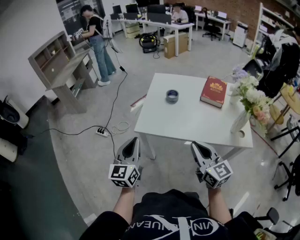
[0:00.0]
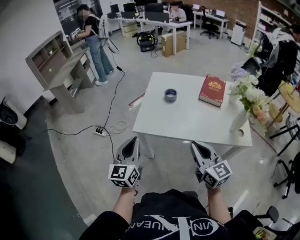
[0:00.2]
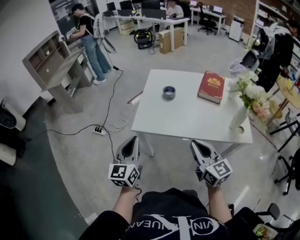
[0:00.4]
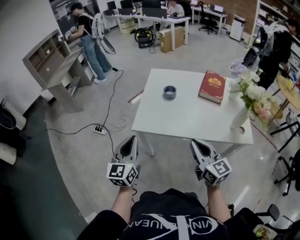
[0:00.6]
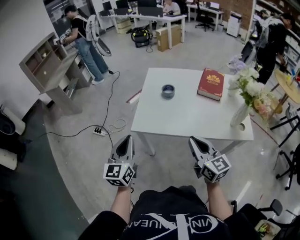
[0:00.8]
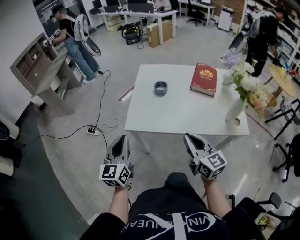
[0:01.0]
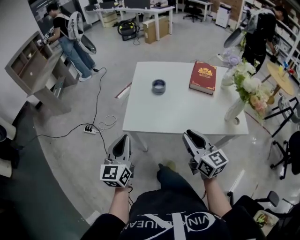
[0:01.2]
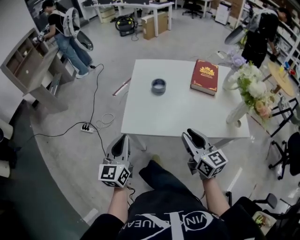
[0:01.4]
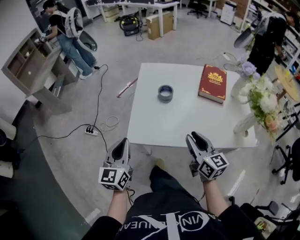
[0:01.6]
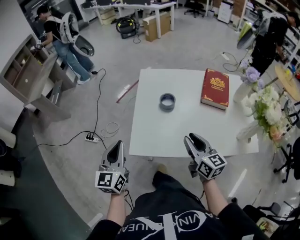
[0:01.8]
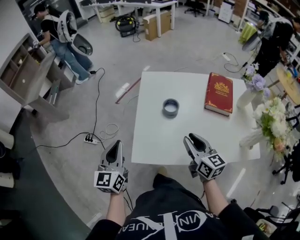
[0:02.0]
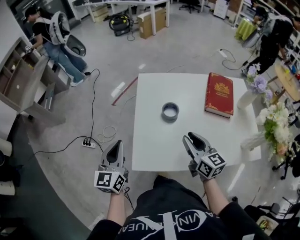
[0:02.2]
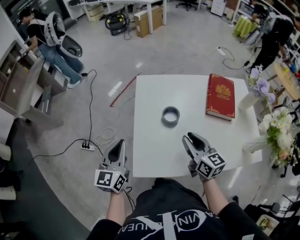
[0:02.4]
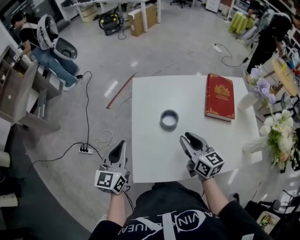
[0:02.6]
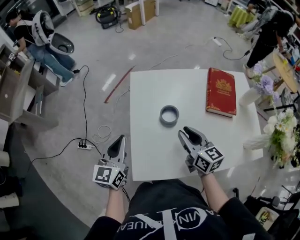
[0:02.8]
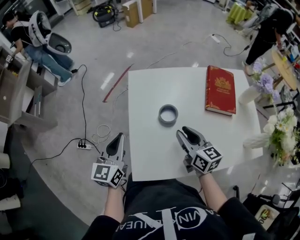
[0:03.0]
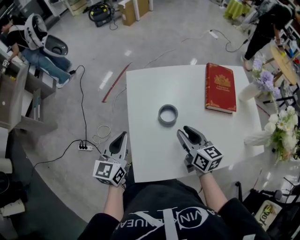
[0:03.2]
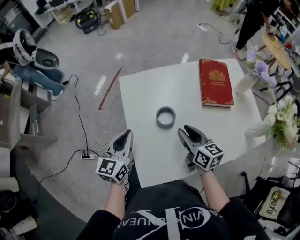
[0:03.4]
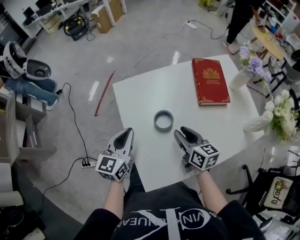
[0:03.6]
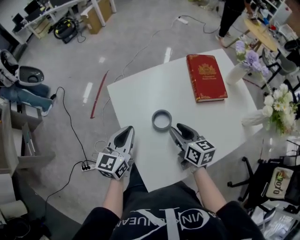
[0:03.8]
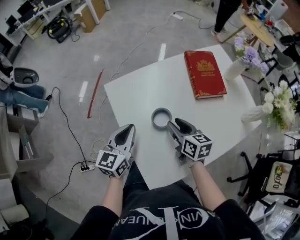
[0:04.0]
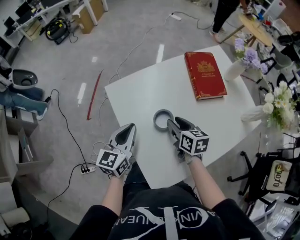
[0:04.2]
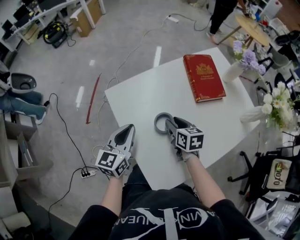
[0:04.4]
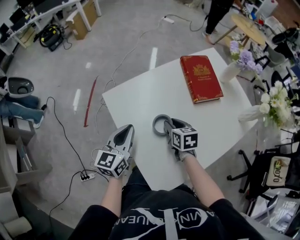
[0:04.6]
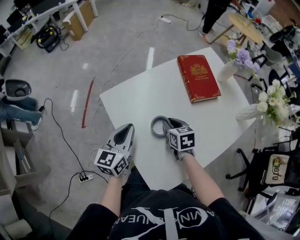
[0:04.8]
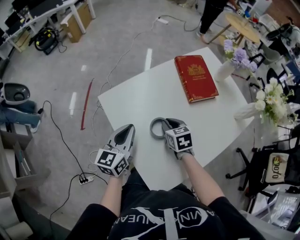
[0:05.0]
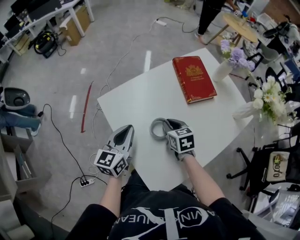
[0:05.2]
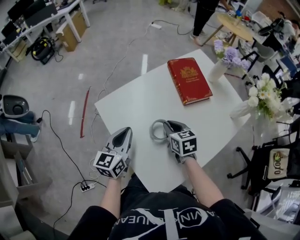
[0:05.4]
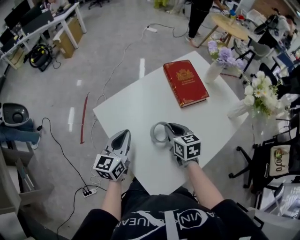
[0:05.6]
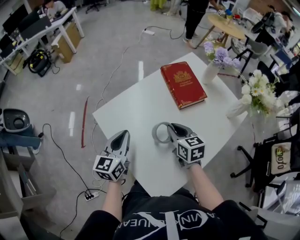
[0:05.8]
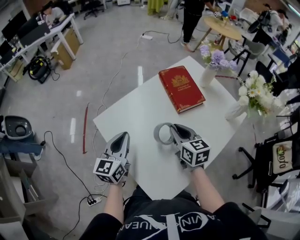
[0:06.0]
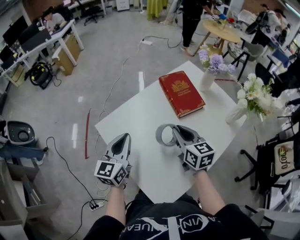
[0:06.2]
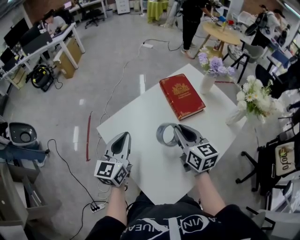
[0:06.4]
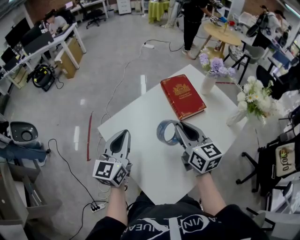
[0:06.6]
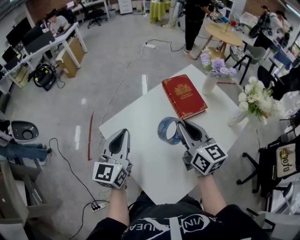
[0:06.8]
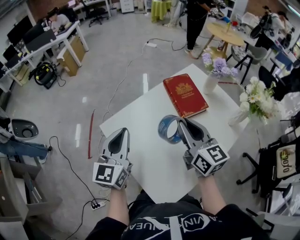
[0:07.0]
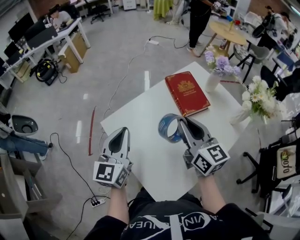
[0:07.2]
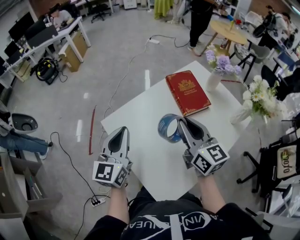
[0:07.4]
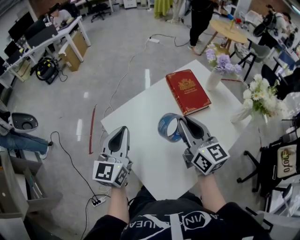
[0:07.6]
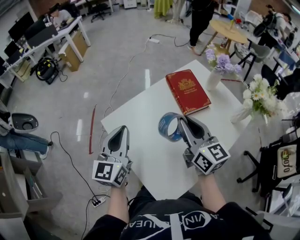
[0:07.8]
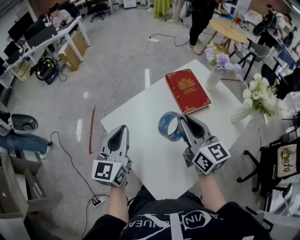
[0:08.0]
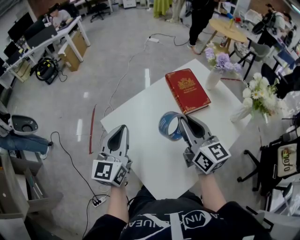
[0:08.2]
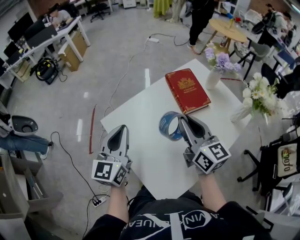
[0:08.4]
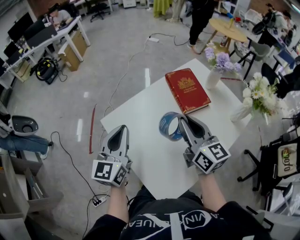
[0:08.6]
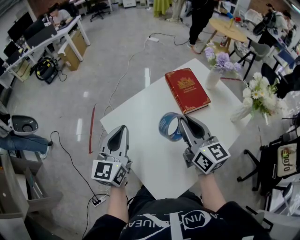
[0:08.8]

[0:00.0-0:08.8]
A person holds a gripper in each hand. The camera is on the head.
0:00.0 to 0:01.4: Both grippers travel together forward, roughly 10 cm. The right gripper opens its fingers.
0:01.4 to 0:03.0: The grippers both shift forward by roughly 30 cm.
0:03.0 to 0:04.4: The right gripper changes place by about 10 cm, and changes its angle by approximately 30 degrees. Meanwhile the left gripper shifts by about 15 cm, and changes its angle by about 30 degrees.
0:04.4 to 0:05.8: The right gripper heads upward and to the right, covering roughly 10 cm, and closes up.
0:05.8 to 0:07.4: Both grippers move upward, roughly 15 cm. The right gripper changes its angle by some 30 degrees.
0:07.4 to 0:08.8: Neither gripper changes place.

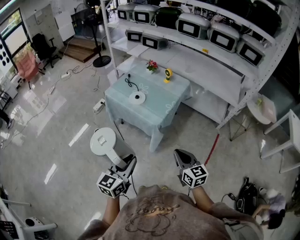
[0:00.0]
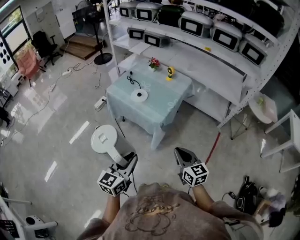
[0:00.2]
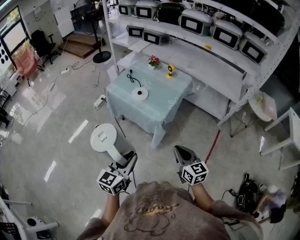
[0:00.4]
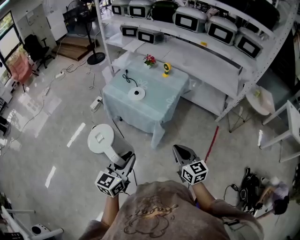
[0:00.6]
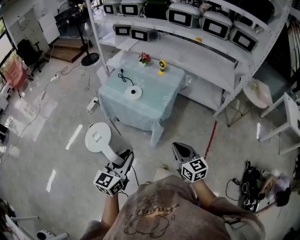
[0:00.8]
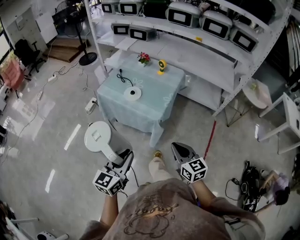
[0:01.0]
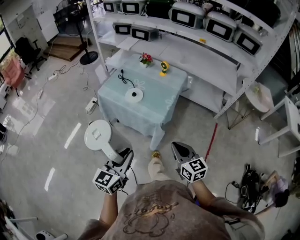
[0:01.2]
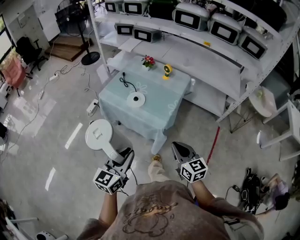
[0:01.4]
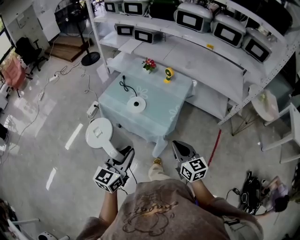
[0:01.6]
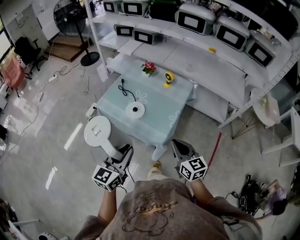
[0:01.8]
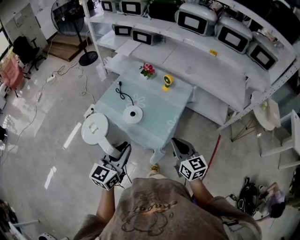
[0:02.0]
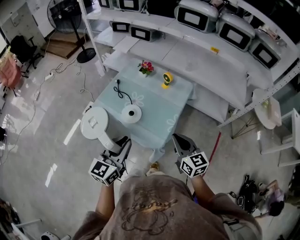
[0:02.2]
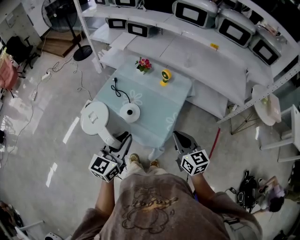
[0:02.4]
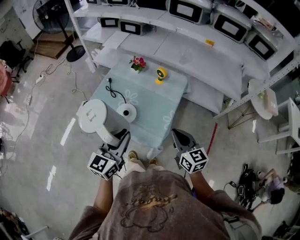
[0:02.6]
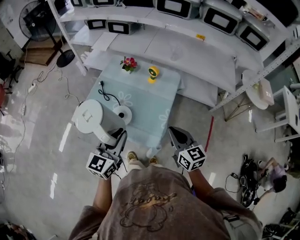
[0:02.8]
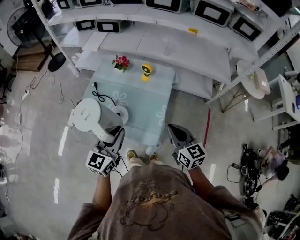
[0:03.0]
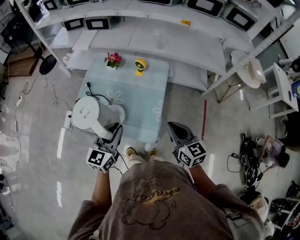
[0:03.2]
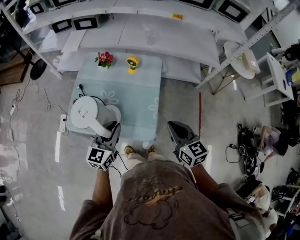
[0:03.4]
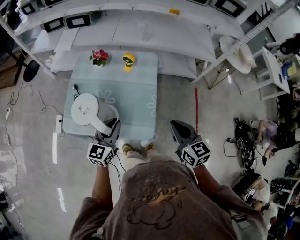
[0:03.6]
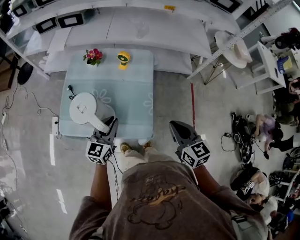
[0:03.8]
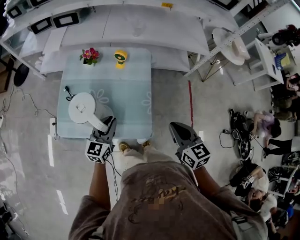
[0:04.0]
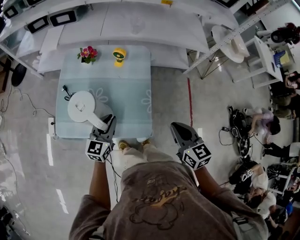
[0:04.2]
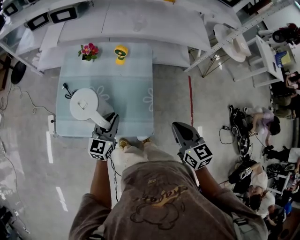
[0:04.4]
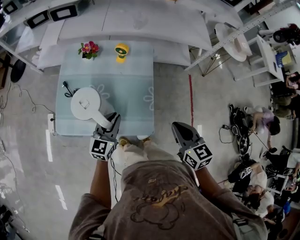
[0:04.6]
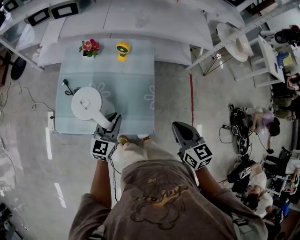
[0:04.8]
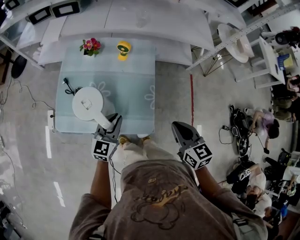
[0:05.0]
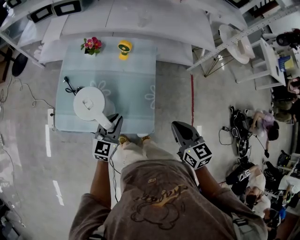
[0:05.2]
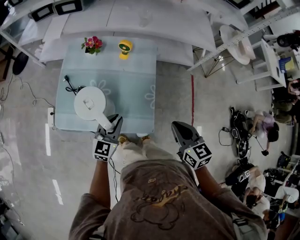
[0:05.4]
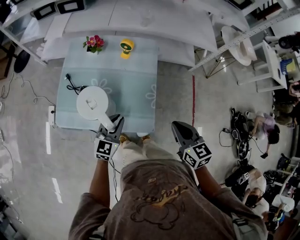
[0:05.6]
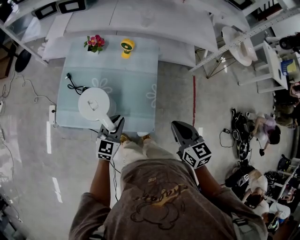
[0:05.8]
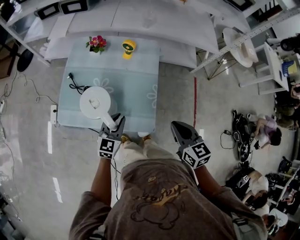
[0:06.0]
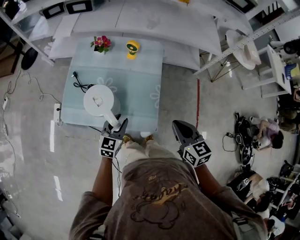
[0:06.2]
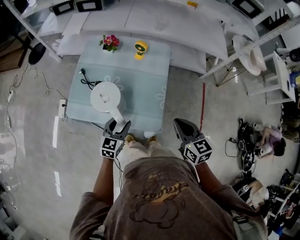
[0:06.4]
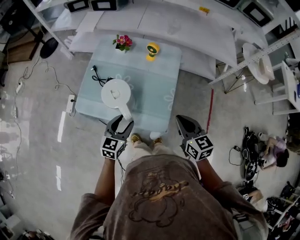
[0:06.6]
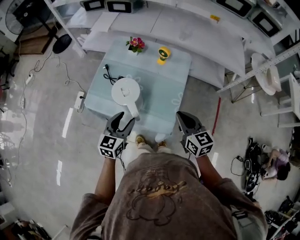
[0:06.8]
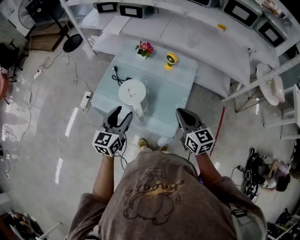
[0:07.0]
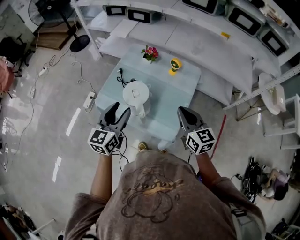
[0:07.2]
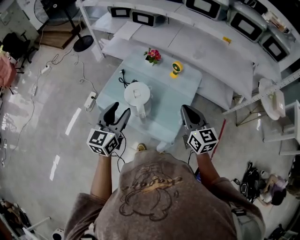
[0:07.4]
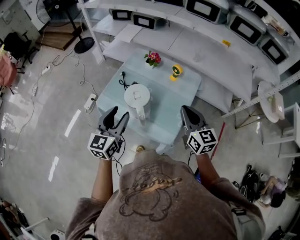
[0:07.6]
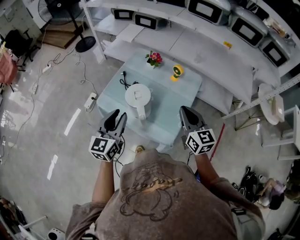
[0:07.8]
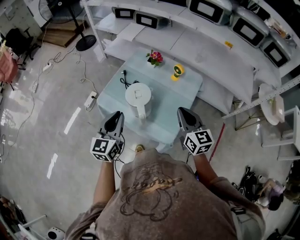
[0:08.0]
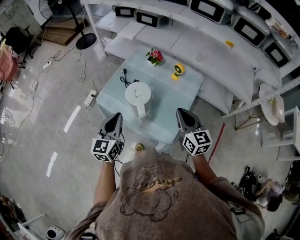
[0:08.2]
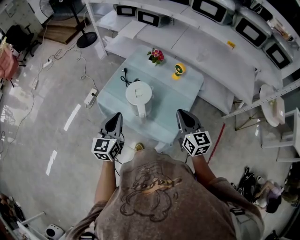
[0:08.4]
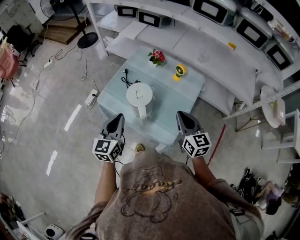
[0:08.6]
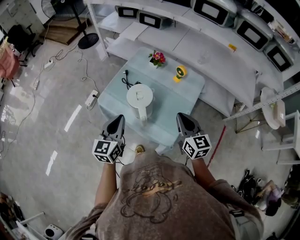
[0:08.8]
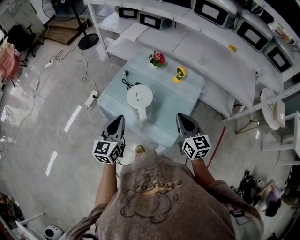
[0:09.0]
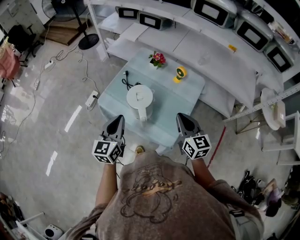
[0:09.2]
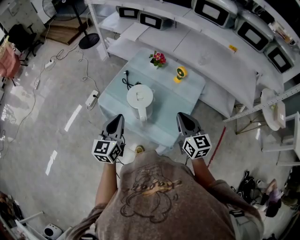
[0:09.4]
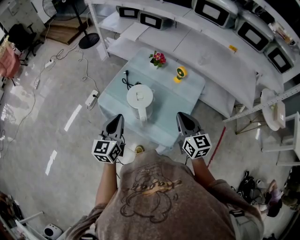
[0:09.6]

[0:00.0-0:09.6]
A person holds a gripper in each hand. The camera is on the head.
0:00.0 to 0:01.6: The grippers both shift forward and to the left by about 20 cm.
0:01.6 to 0:03.2: Both grippers move forward, about 25 cm.
0:03.2 to 0:04.8: The left gripper goes some 15 cm downward and forward.
0:04.8 to 0:06.4: The left gripper moves backward, approximately 5 cm, and opens.
0:06.4 to 0:08.0: The right gripper moves upward, to the left and forward, approximately 15 cm, and changes its angle by approximately 20 degrees. The left gripper shifts some 25 cm upward and to the left, rotates about 40 degrees, and closes.
0:08.0 to 0:09.6: The grippers move only a little.

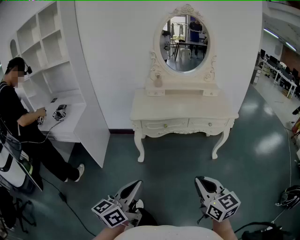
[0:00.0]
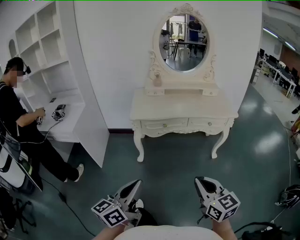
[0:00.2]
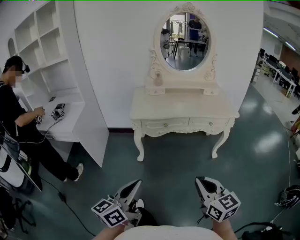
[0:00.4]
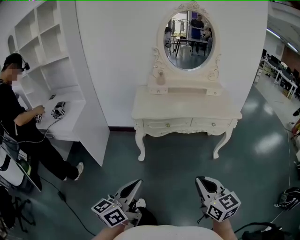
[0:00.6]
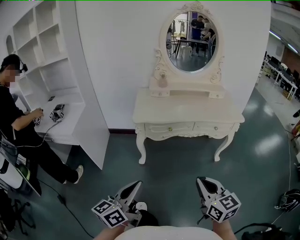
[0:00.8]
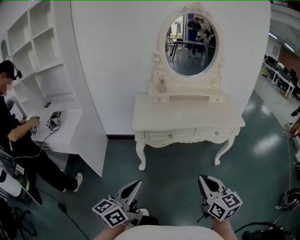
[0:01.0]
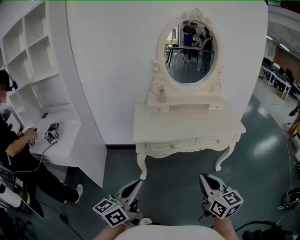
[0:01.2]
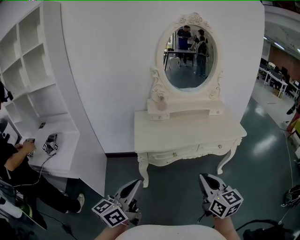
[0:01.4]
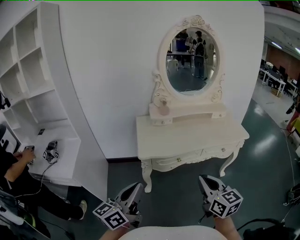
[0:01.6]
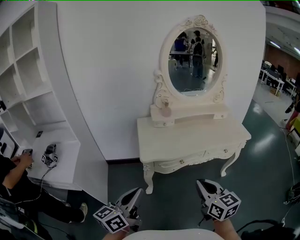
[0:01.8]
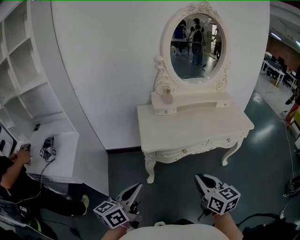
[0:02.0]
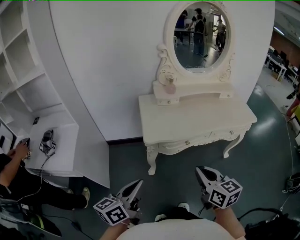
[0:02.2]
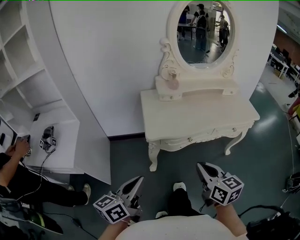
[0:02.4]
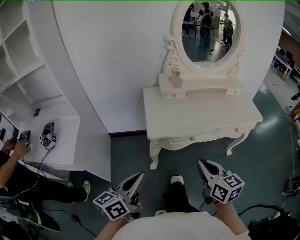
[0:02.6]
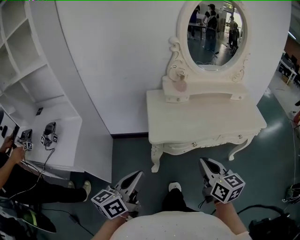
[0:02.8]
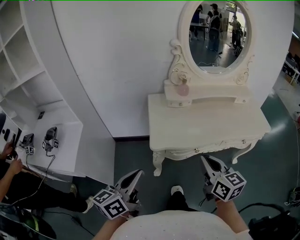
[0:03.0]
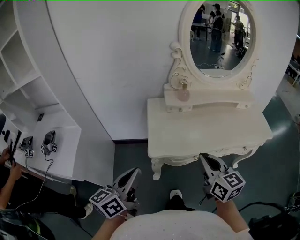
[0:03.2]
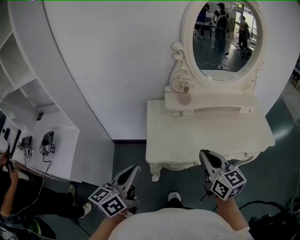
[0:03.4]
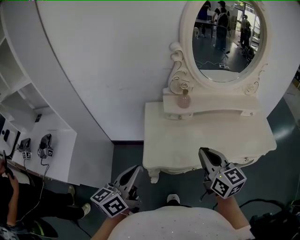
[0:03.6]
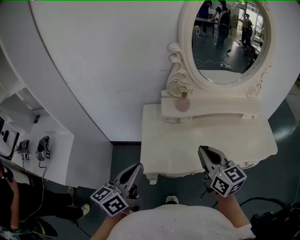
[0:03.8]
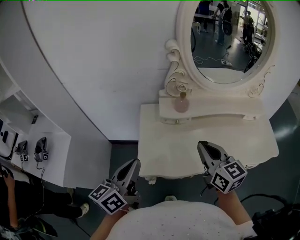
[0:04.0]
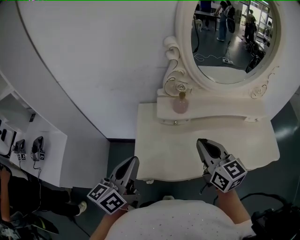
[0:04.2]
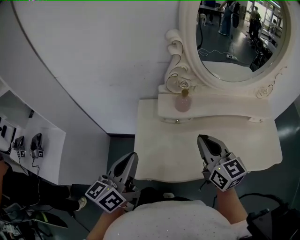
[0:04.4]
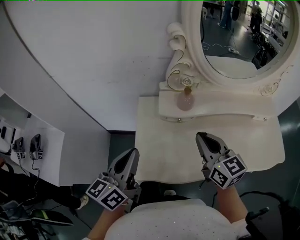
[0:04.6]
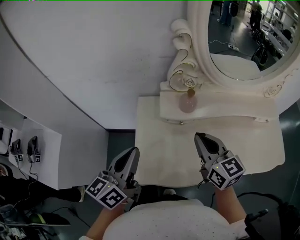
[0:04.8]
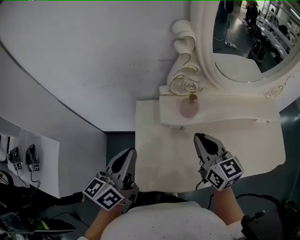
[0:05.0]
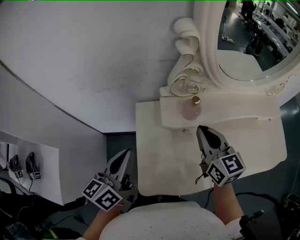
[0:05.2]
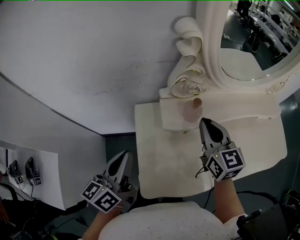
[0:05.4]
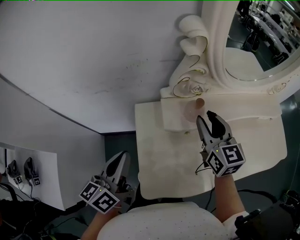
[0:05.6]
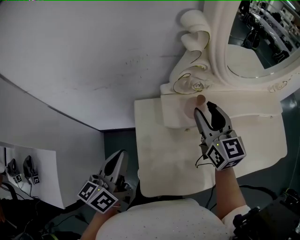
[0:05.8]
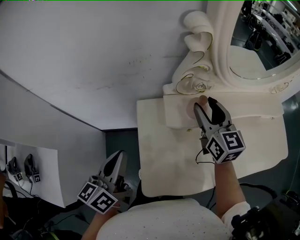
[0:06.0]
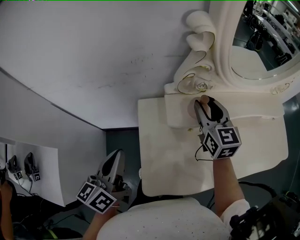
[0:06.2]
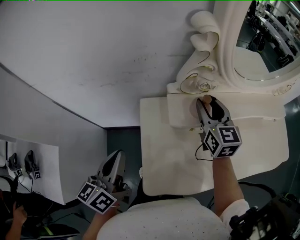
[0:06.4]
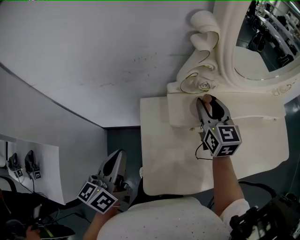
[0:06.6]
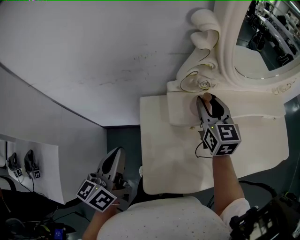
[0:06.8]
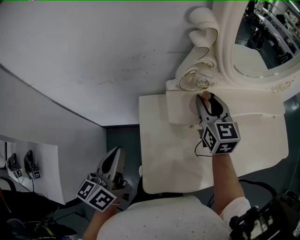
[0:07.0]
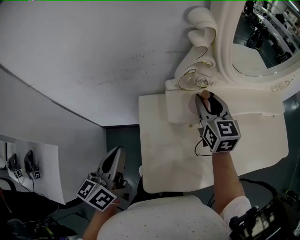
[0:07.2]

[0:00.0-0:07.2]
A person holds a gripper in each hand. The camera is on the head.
0:00.0 to 0:01.4: The two grippers go roughly 25 cm forward and to the left.
0:01.4 to 0:02.8: The right gripper shifts approximately 20 cm forward, to the left and downward. The left gripper goes approximately 15 cm to the left, forward and downward.
0:02.8 to 0:04.4: Both grippers move forward, about 30 cm.
0:04.4 to 0:05.8: The right gripper travels forward by about 20 cm, and opens. Meanwhile the left gripper heads forward, to the left and downward, covering about 15 cm.
0:05.8 to 0:07.2: There are only small adjustments of the grippers.
